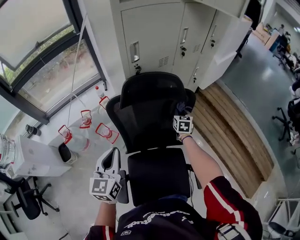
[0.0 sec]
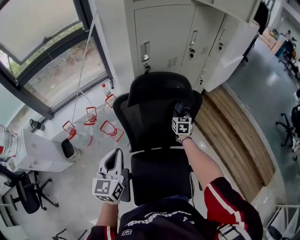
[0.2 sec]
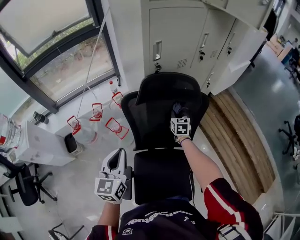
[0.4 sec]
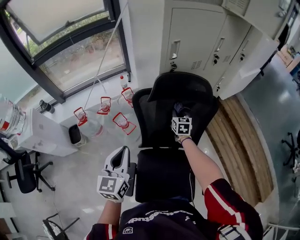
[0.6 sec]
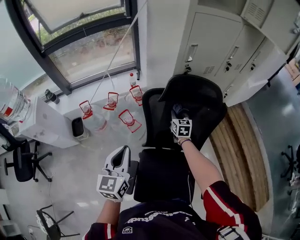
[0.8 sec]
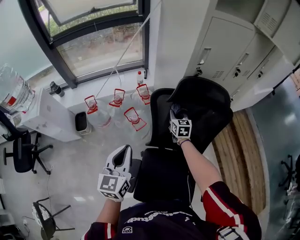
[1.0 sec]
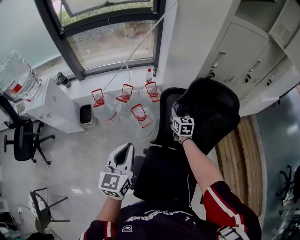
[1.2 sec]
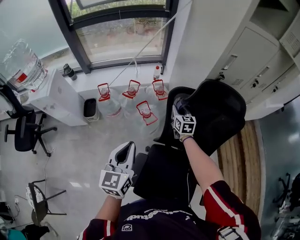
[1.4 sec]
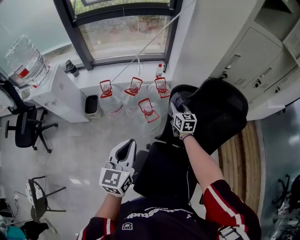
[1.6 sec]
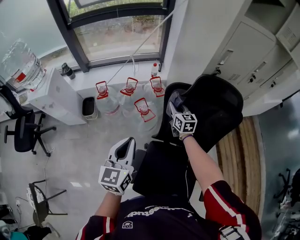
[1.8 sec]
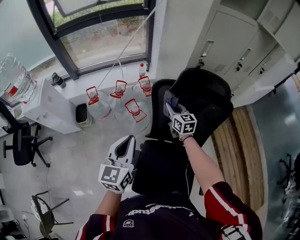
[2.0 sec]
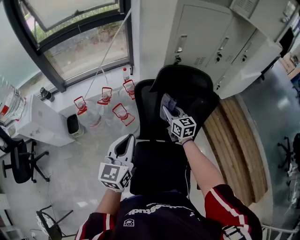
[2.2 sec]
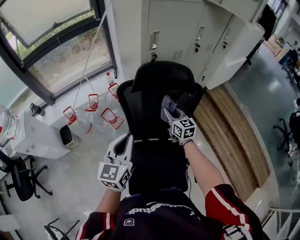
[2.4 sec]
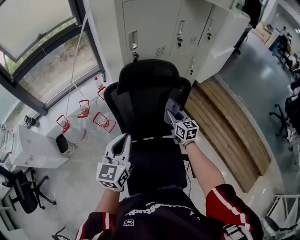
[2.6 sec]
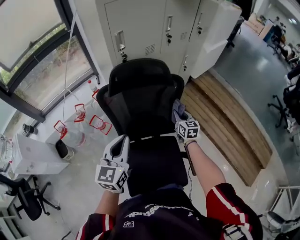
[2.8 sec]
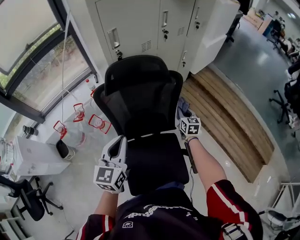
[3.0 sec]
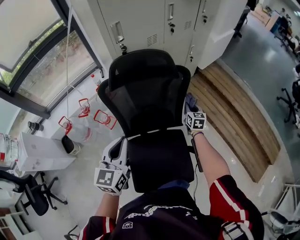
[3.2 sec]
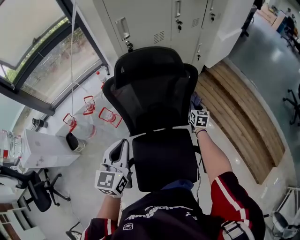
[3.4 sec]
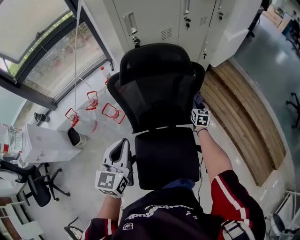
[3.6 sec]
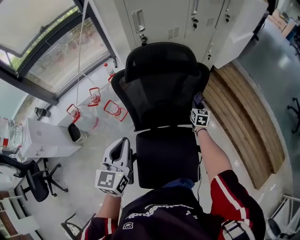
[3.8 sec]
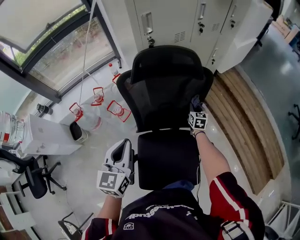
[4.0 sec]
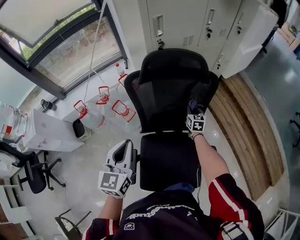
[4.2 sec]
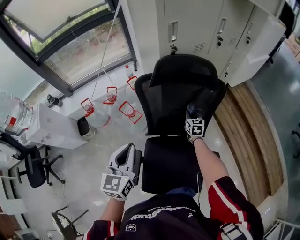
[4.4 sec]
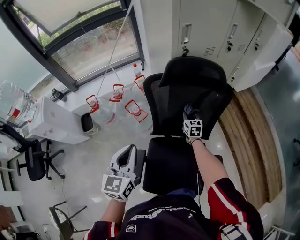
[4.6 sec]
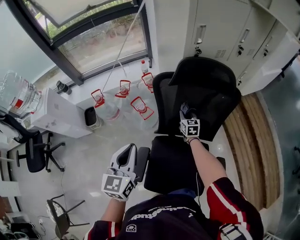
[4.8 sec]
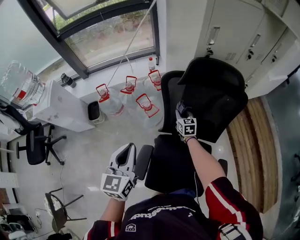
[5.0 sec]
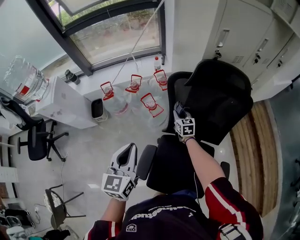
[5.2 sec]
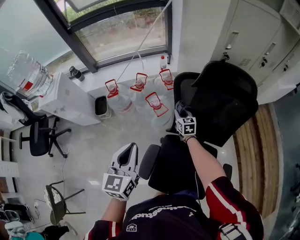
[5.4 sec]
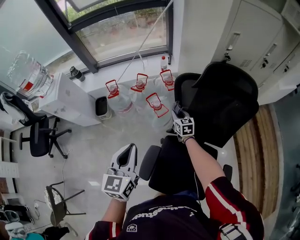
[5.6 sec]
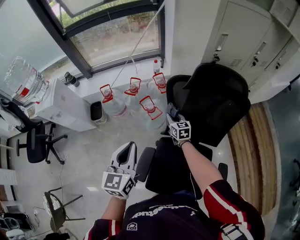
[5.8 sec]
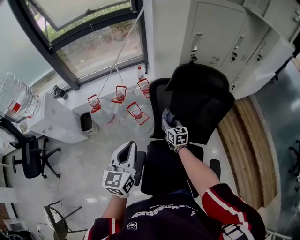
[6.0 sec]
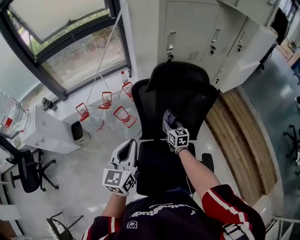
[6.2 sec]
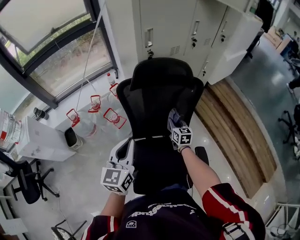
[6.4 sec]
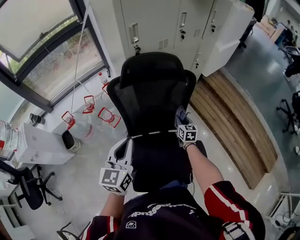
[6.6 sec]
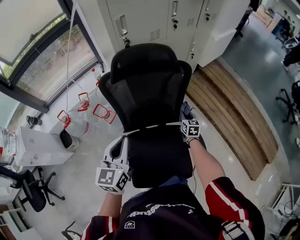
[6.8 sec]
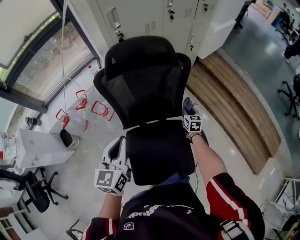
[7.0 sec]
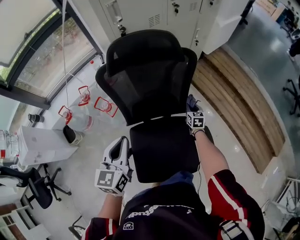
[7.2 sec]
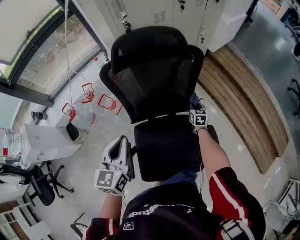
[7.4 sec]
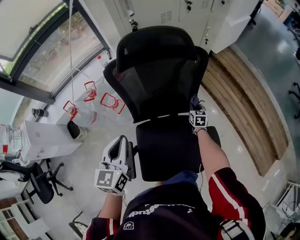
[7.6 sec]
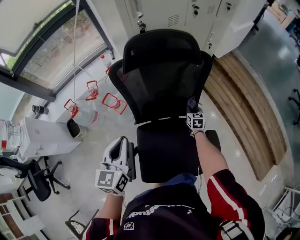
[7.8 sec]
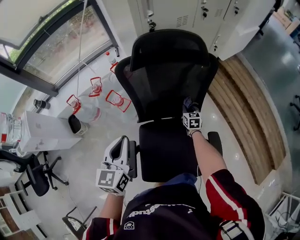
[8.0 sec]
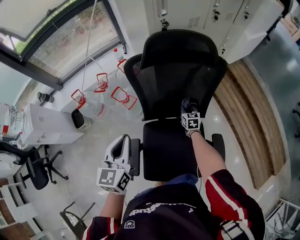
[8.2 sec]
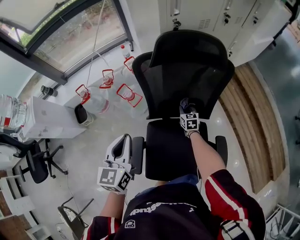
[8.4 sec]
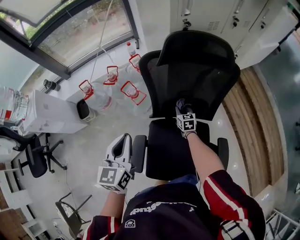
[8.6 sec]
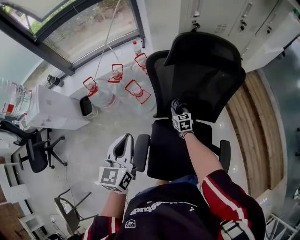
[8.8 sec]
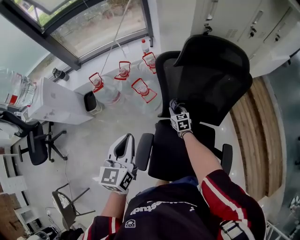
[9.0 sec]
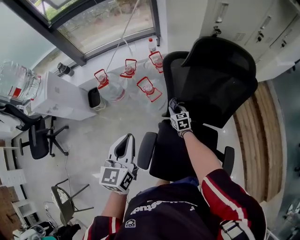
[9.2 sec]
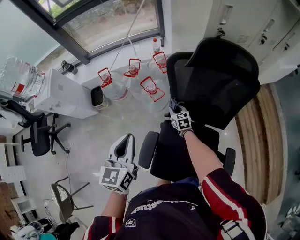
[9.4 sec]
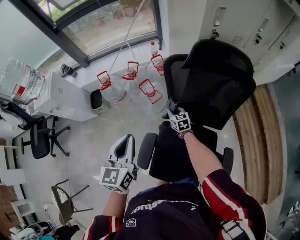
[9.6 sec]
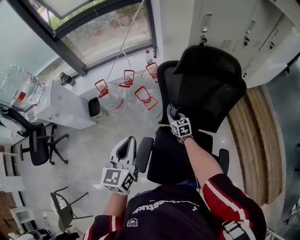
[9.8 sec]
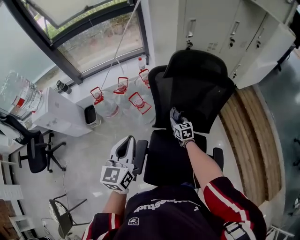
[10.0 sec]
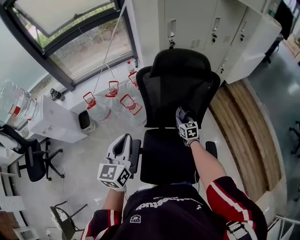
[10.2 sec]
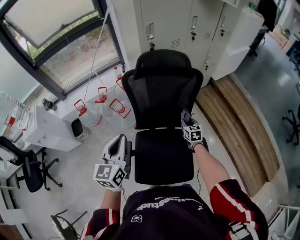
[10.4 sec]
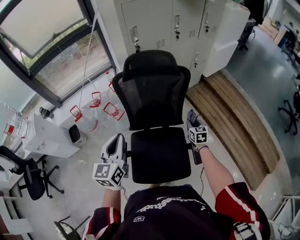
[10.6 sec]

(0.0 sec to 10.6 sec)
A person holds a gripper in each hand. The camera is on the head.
0.0 sec - 1.6 sec: The right gripper changes place by roughly 40 cm, and rotates roughly 40 degrees. The left gripper moves roughly 20 cm, and changes its angle by approximately 20 degrees.
1.6 sec - 3.0 sec: The right gripper shifts by approximately 50 cm, and swivels approximately 40 degrees. The left gripper ends up roughly 25 cm from where it was, and changes its angle by approximately 30 degrees.
3.0 sec - 4.6 sec: The left gripper travels to the left and backward by approximately 15 cm, while the right gripper heads to the left, covering approximately 25 cm.
4.6 sec - 6.0 sec: The right gripper heads to the left, covering approximately 15 cm. The left gripper goes to the left and returns, roughly 10 cm each way.
6.0 sec - 7.6 sec: The right gripper moves some 40 cm, and changes its angle by some 40 degrees. Meanwhile the left gripper moves about 15 cm.
7.6 sec - 9.0 sec: The right gripper changes place by some 35 cm, and rotates some 30 degrees; the left gripper ends up roughly 15 cm from where it was.
9.0 sec - 10.6 sec: The left gripper ends up some 20 cm from where it was, while the right gripper ends up approximately 40 cm from where it was, and turns by some 20 degrees.

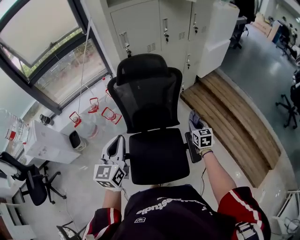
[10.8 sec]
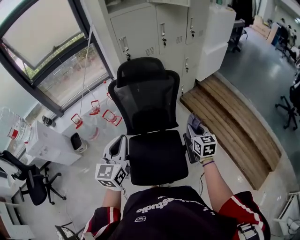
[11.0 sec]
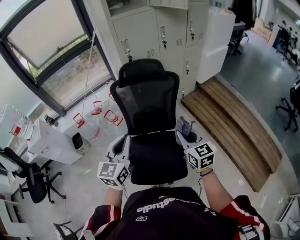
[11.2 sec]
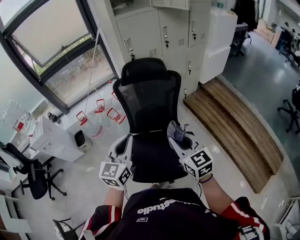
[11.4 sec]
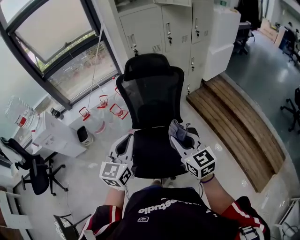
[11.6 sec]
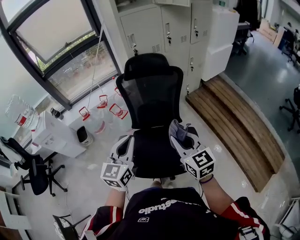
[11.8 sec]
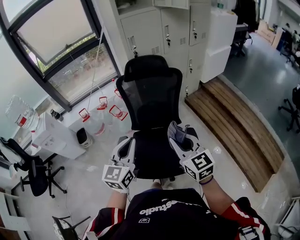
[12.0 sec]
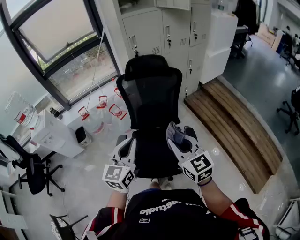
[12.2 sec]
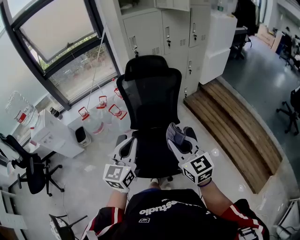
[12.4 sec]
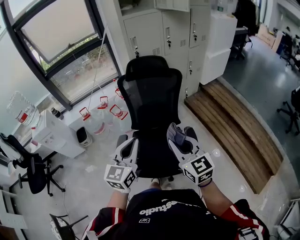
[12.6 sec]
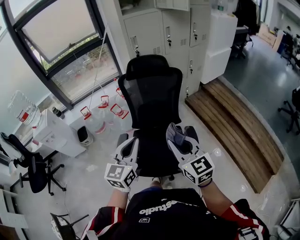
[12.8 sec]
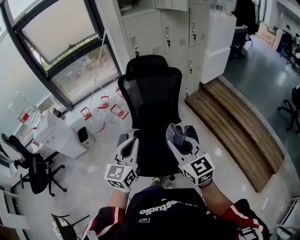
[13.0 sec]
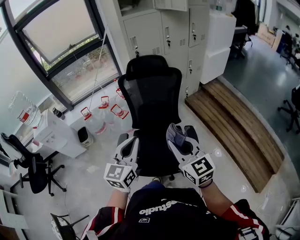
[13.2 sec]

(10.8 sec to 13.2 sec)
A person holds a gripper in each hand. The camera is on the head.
10.8 sec - 12.0 sec: The left gripper travels backward by roughly 15 cm; the right gripper travels backward, upward and to the left by about 35 cm, and swivels approximately 30 degrees.
12.0 sec - 13.2 sec: Both grippers travel together backward, some 5 cm.

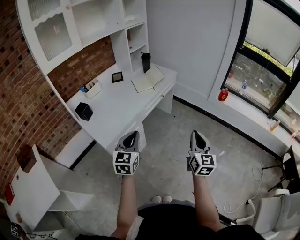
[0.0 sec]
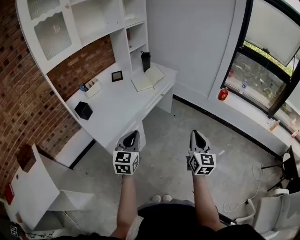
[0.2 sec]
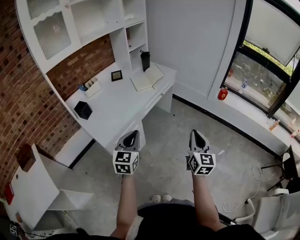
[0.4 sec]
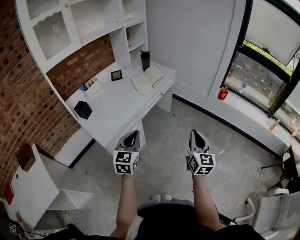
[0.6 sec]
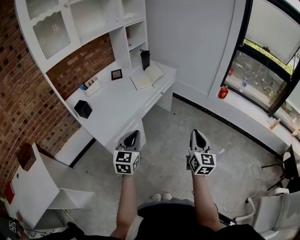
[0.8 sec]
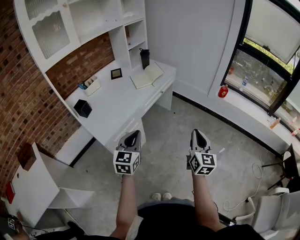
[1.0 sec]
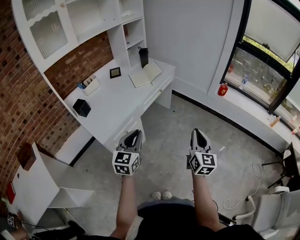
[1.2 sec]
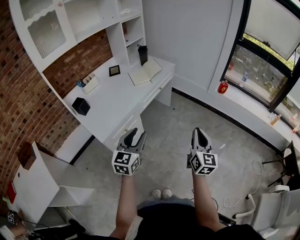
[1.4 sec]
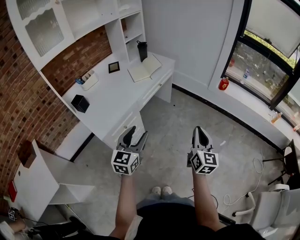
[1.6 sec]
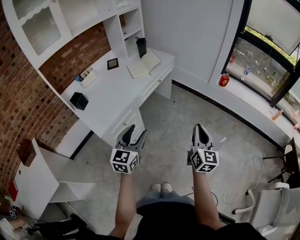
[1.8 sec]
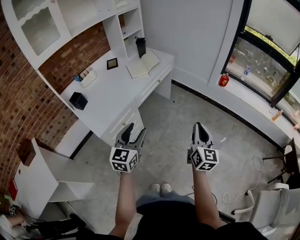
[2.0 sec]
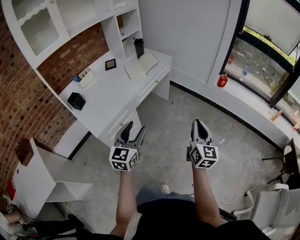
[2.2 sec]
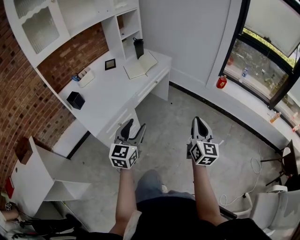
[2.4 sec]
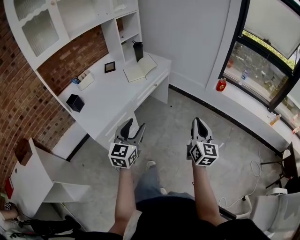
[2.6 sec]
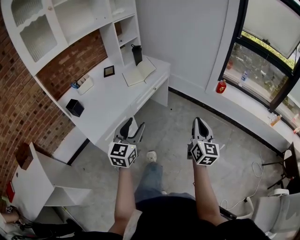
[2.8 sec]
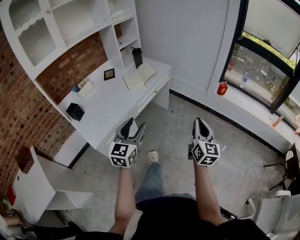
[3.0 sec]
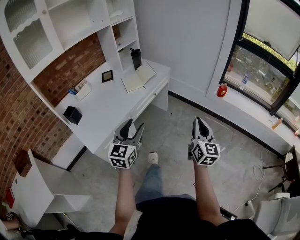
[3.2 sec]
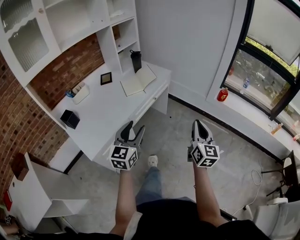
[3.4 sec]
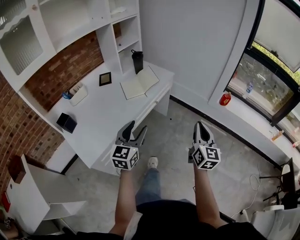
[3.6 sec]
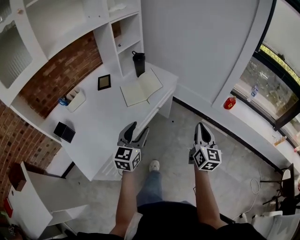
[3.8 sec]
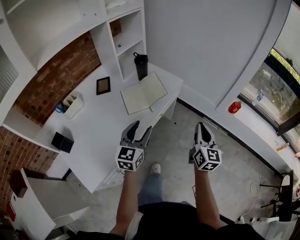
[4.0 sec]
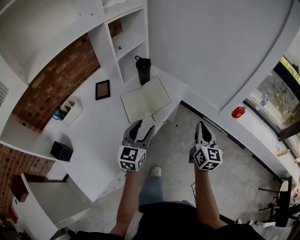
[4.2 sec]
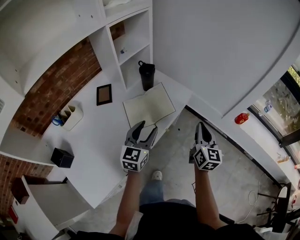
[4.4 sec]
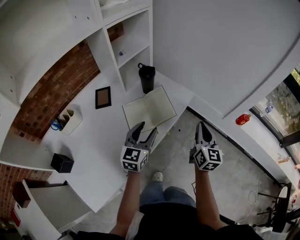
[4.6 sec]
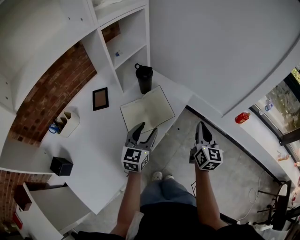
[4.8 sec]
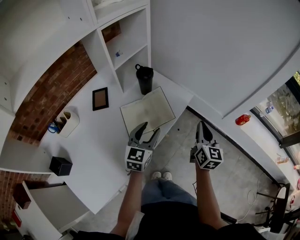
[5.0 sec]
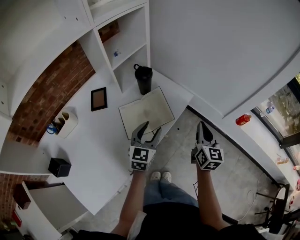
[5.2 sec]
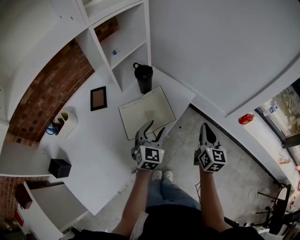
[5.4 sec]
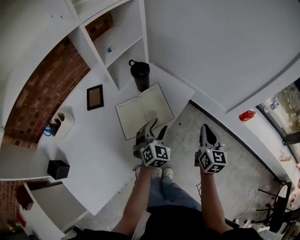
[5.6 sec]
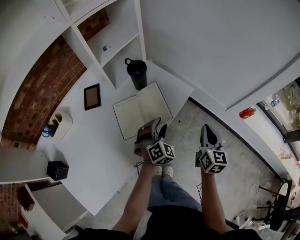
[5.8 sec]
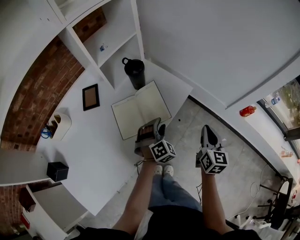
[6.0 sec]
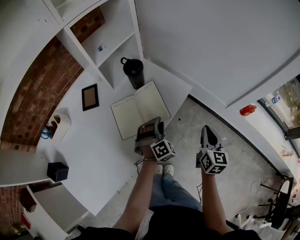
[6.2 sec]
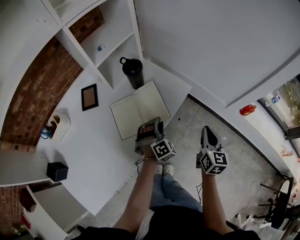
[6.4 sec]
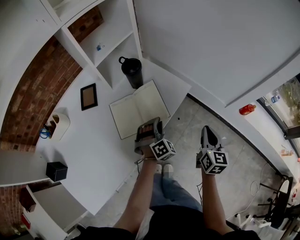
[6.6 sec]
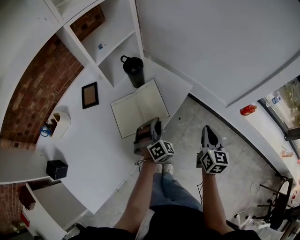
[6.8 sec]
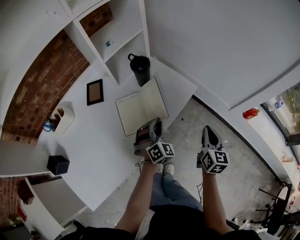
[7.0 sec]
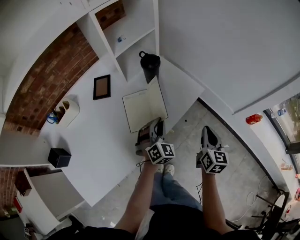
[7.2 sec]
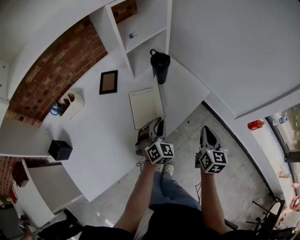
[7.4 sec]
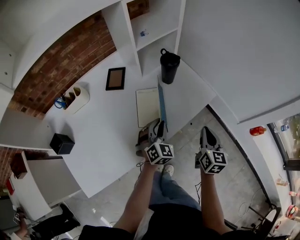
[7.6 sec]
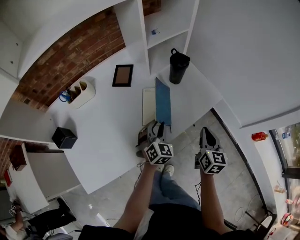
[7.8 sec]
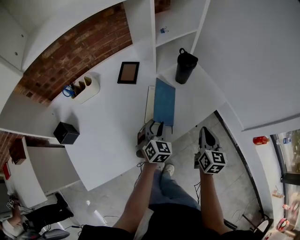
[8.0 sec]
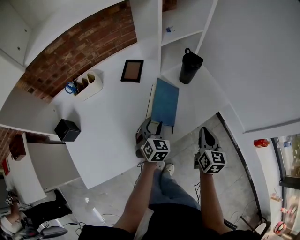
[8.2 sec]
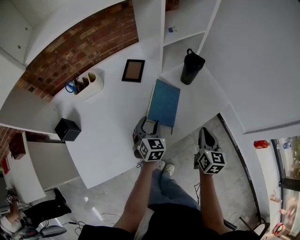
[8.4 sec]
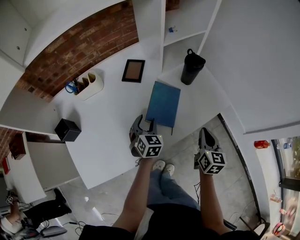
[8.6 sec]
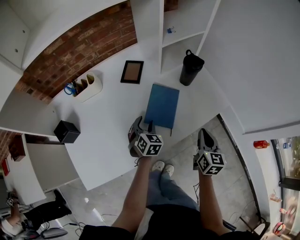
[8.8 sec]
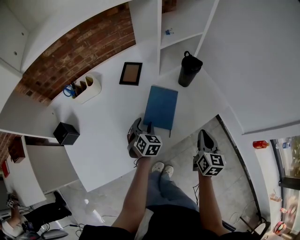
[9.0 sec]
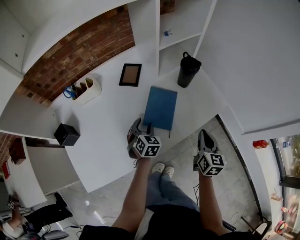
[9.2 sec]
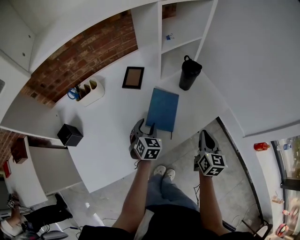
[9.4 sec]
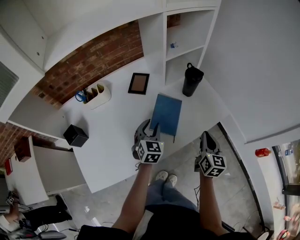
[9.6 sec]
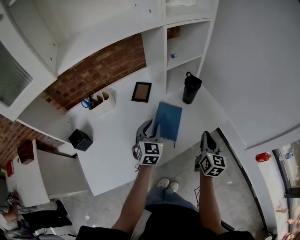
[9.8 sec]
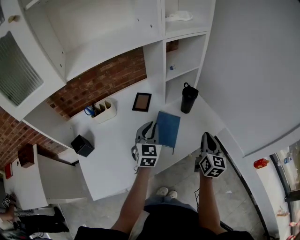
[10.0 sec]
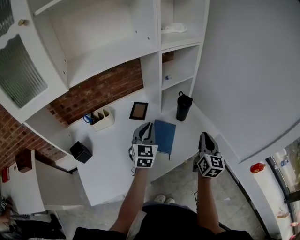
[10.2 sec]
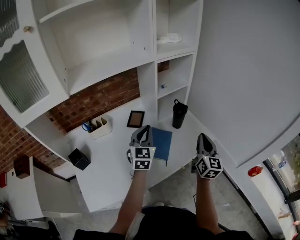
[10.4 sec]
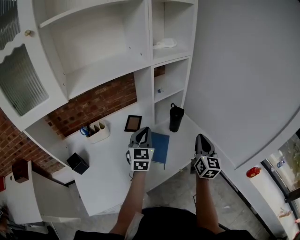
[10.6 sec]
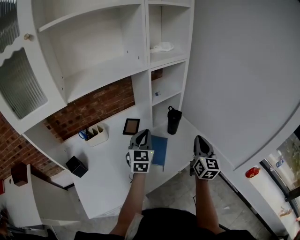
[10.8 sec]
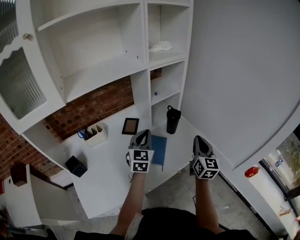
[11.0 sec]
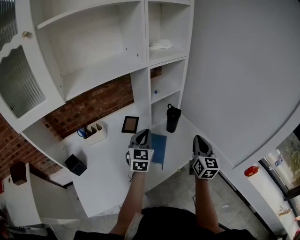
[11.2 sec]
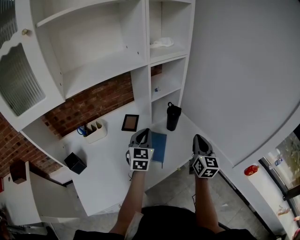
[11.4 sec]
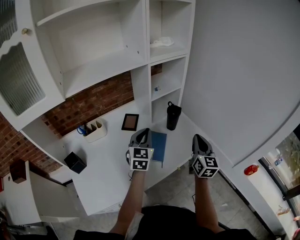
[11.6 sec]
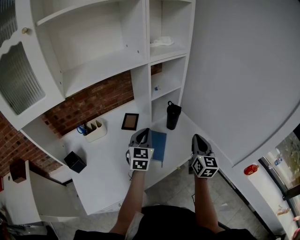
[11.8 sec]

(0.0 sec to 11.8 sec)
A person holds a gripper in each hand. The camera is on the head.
0.0 sec - 1.4 sec: The left gripper opens.
1.4 sec - 3.0 sec: The grippers both shift forward by about 10 cm.
3.0 sec - 4.4 sec: The two grippers travel together, forward, approximately 50 cm.
4.4 sec - 6.0 sec: The right gripper goes approximately 10 cm downward and forward; the left gripper is displaced downward, forward and to the right by some 20 cm, and twists roughly 50 degrees clockwise, seen from behind.
6.0 sec - 7.4 sec: The grippers both shift to the left by approximately 5 cm. The left gripper turns by approximately 20 degrees, and closes.
7.4 sec - 8.8 sec: The left gripper heads to the left, covering some 15 cm, turns by some 30 degrees, and opens up, while the right gripper travels to the left by roughly 10 cm.
8.8 sec - 10.4 sec: The grippers both shift upward by approximately 25 cm. The right gripper turns by some 30 degrees. The left gripper tips its fingers upward by approximately 30 degrees, and closes its fingers.
10.4 sec - 11.8 sec: The grippers stay close to where they were, moving slightly.
